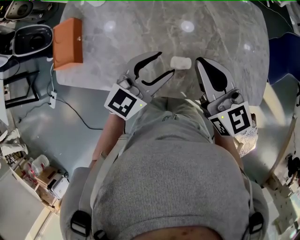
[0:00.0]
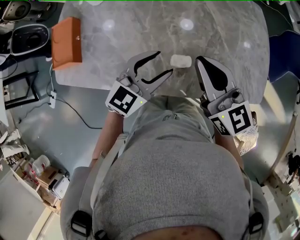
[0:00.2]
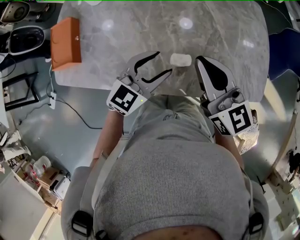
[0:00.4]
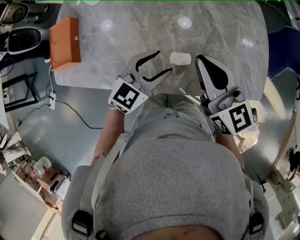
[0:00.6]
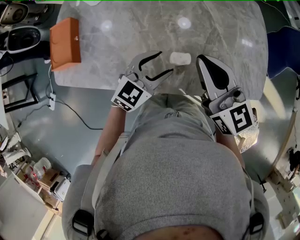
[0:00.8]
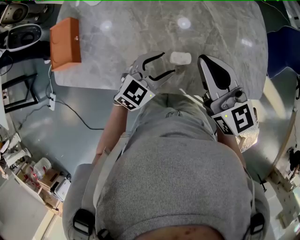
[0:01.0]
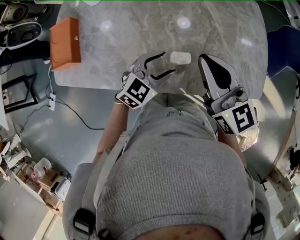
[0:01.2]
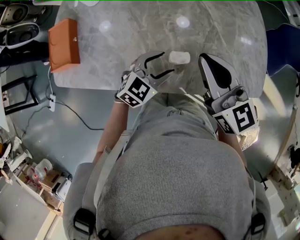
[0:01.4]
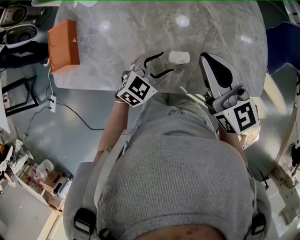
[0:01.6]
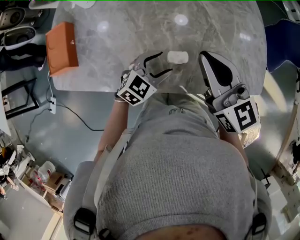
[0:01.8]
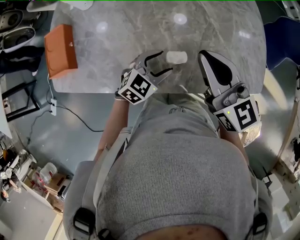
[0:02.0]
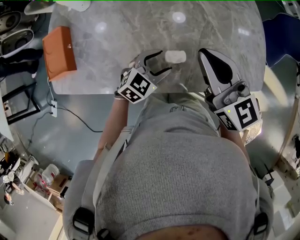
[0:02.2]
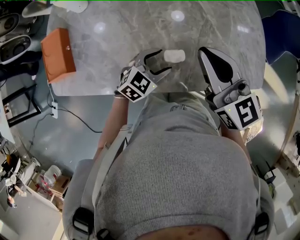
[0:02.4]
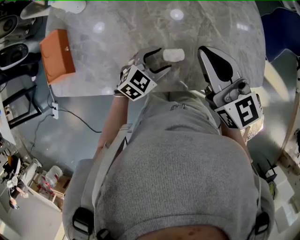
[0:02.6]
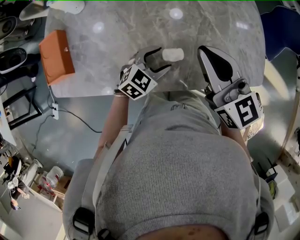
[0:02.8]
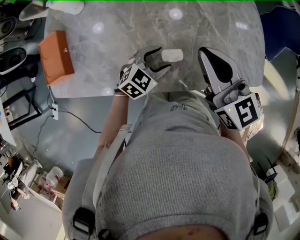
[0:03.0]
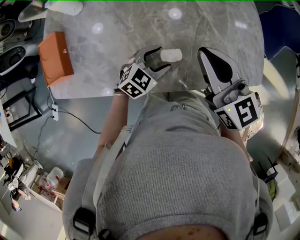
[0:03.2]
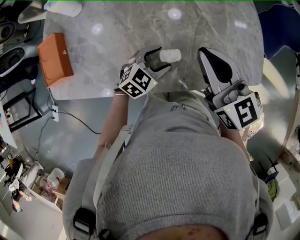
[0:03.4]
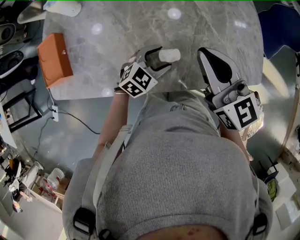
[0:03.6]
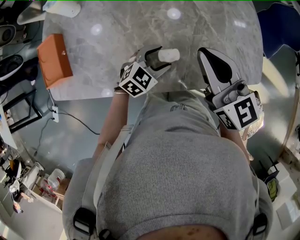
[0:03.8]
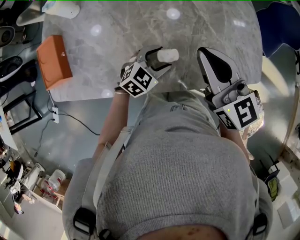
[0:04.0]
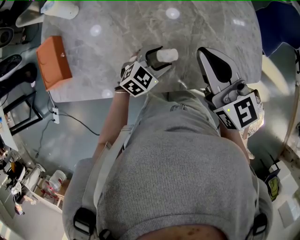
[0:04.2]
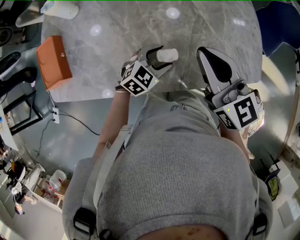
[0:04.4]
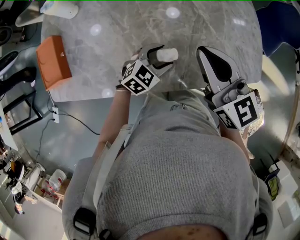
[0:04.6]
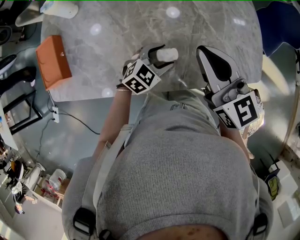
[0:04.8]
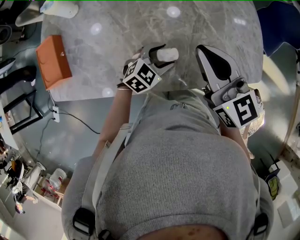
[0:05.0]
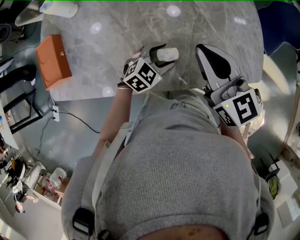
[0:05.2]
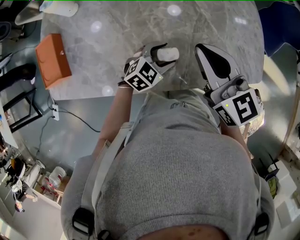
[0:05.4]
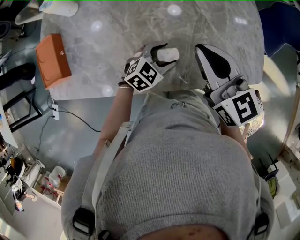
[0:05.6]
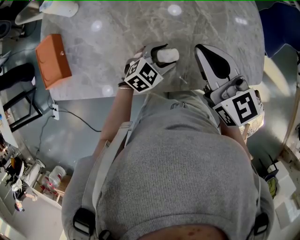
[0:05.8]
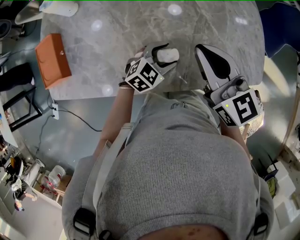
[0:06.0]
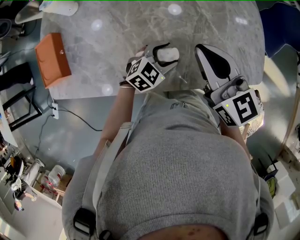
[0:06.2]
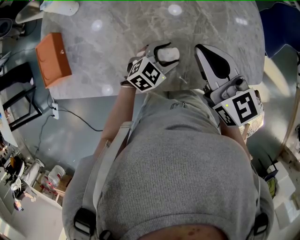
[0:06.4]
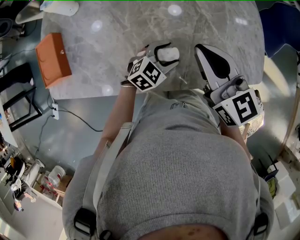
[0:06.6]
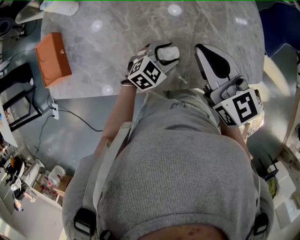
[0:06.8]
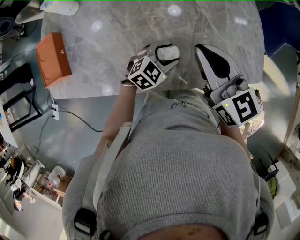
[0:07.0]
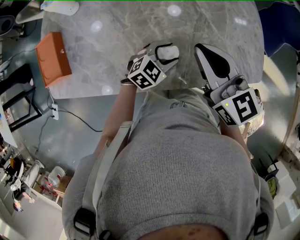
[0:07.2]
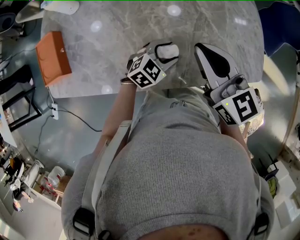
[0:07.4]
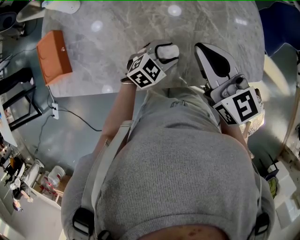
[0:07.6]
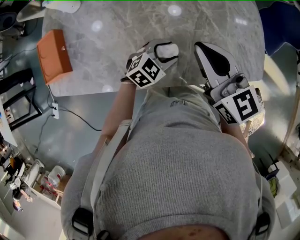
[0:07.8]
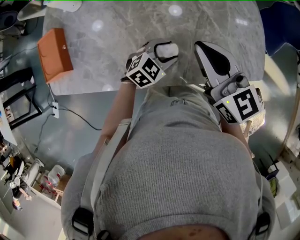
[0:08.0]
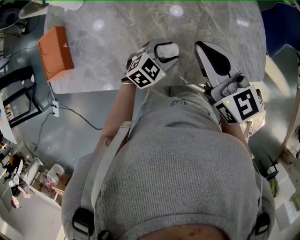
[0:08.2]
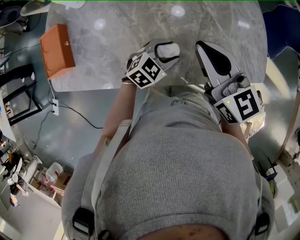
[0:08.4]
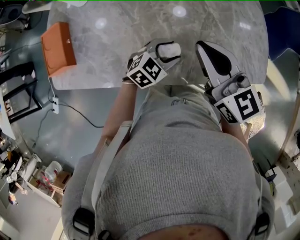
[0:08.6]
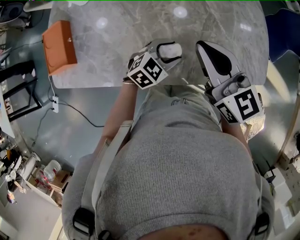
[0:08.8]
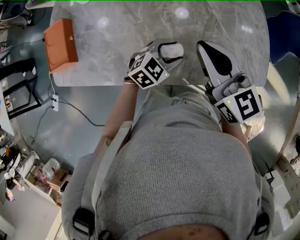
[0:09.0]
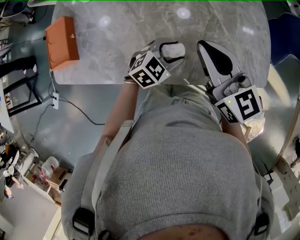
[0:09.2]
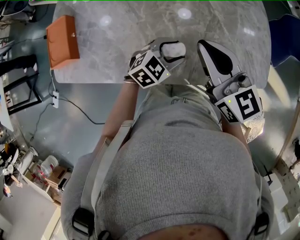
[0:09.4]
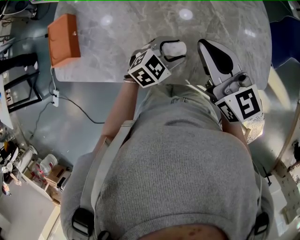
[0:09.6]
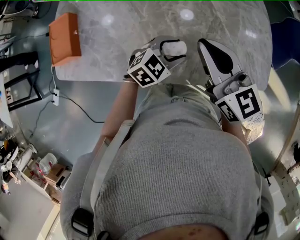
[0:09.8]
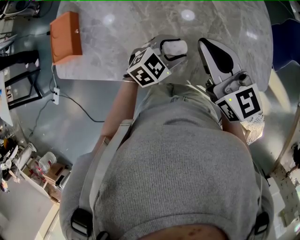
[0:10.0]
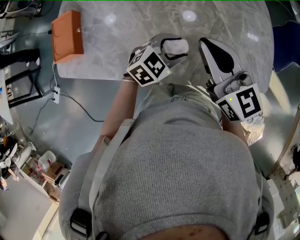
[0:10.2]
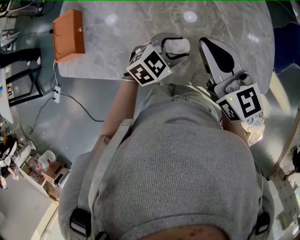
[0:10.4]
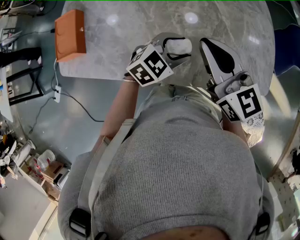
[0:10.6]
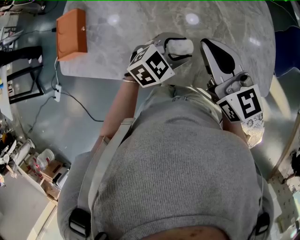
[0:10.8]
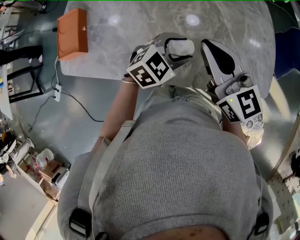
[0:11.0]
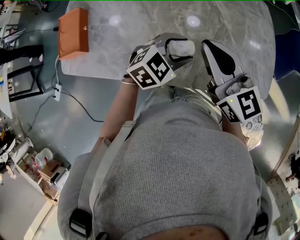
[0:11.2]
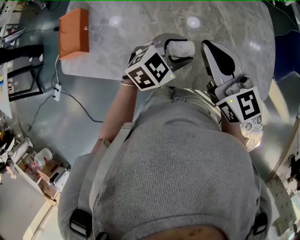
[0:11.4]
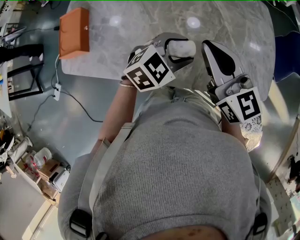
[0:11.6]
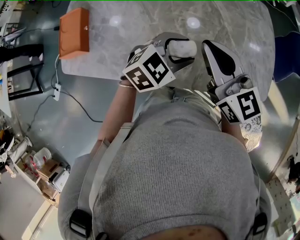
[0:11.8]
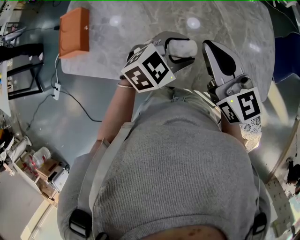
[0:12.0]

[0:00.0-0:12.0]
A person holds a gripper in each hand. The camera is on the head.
0:00.0 to 0:01.6: The left gripper travels downward by roughly 10 cm, and turns by some 20 degrees.
0:01.6 to 0:03.0: The grippers move only a little.
0:03.0 to 0:09.0: There are only small adjustments of the grippers.
0:09.0 to 0:10.4: There are only small adjustments of the grippers.
0:10.4 to 0:12.0: The left gripper is displaced upward by roughly 5 cm.

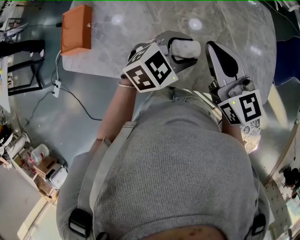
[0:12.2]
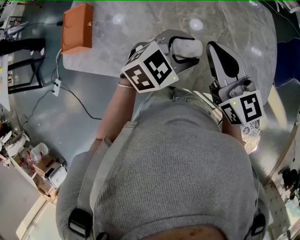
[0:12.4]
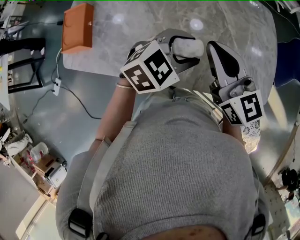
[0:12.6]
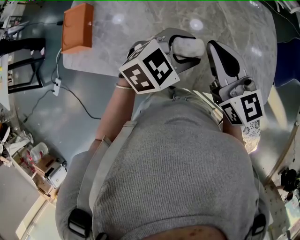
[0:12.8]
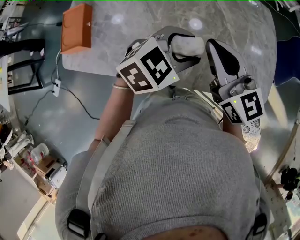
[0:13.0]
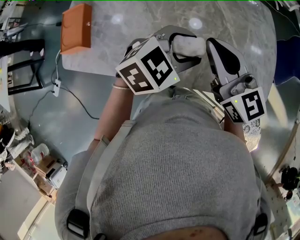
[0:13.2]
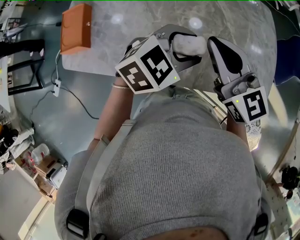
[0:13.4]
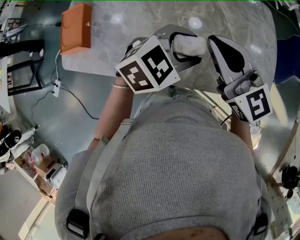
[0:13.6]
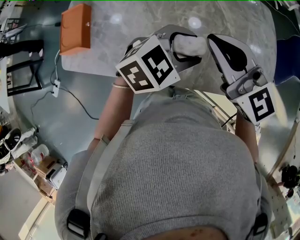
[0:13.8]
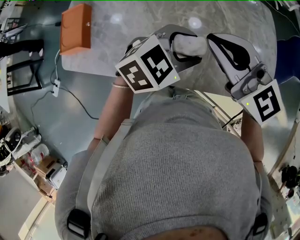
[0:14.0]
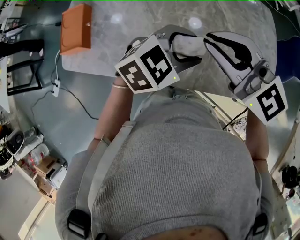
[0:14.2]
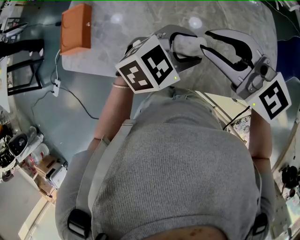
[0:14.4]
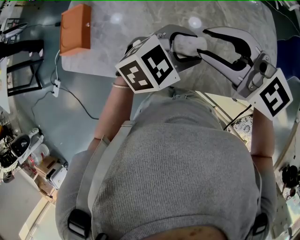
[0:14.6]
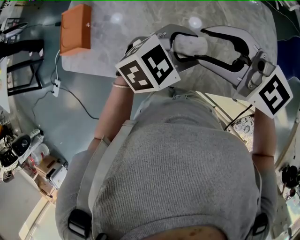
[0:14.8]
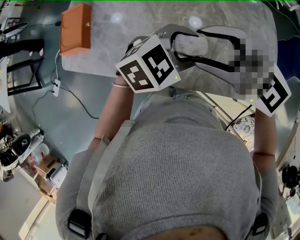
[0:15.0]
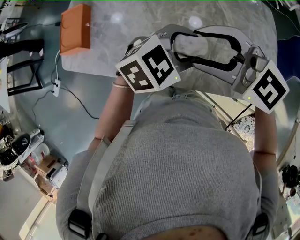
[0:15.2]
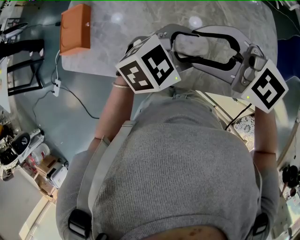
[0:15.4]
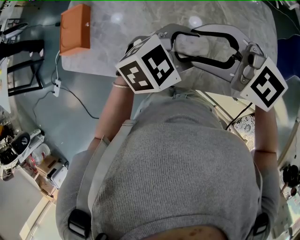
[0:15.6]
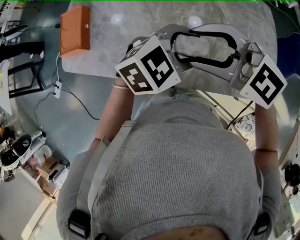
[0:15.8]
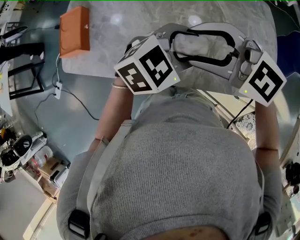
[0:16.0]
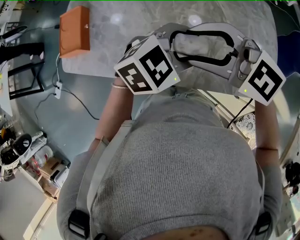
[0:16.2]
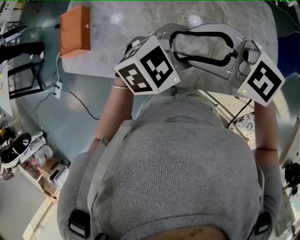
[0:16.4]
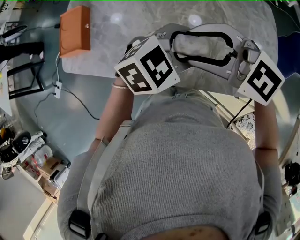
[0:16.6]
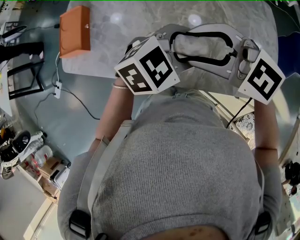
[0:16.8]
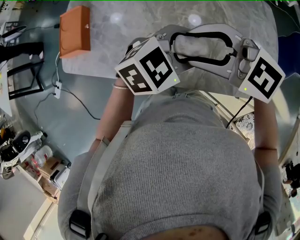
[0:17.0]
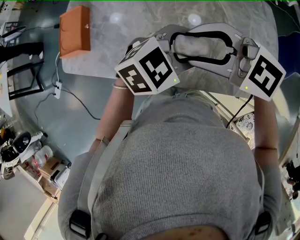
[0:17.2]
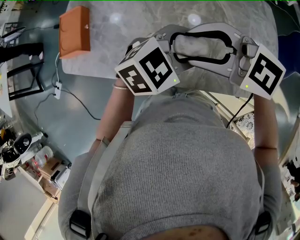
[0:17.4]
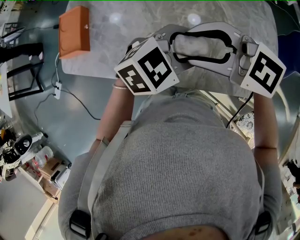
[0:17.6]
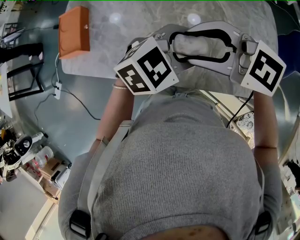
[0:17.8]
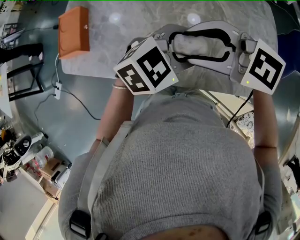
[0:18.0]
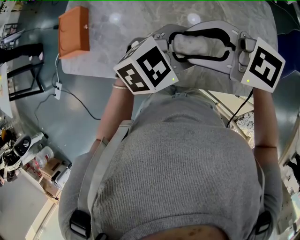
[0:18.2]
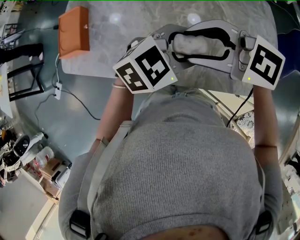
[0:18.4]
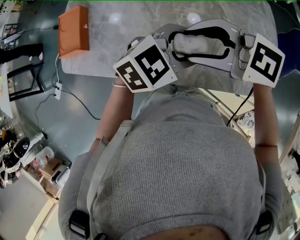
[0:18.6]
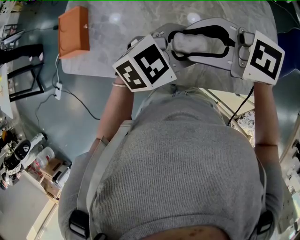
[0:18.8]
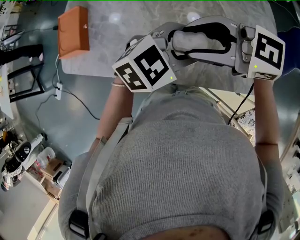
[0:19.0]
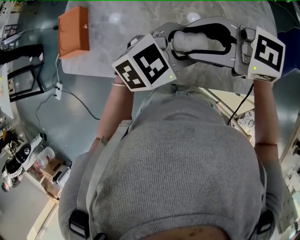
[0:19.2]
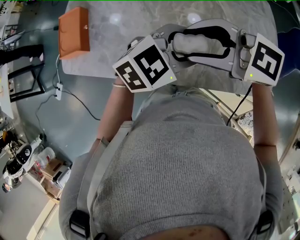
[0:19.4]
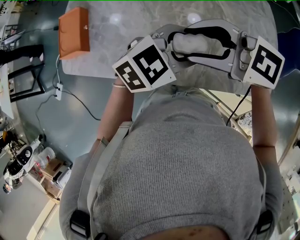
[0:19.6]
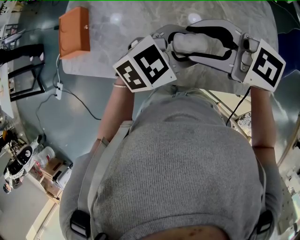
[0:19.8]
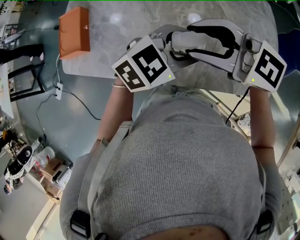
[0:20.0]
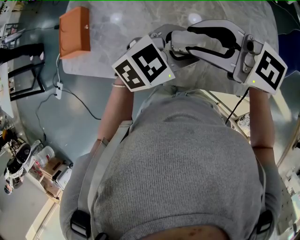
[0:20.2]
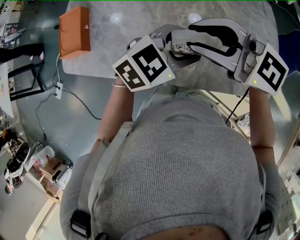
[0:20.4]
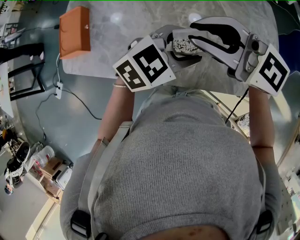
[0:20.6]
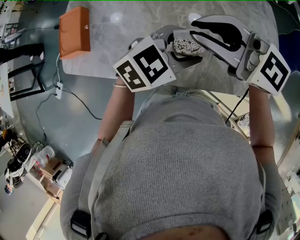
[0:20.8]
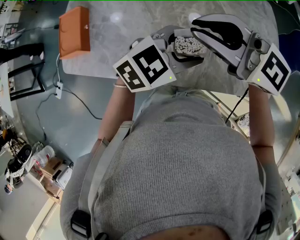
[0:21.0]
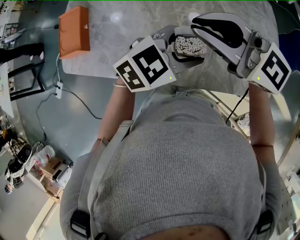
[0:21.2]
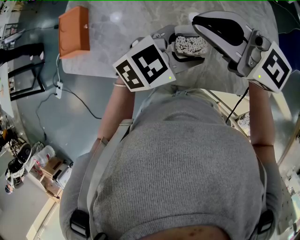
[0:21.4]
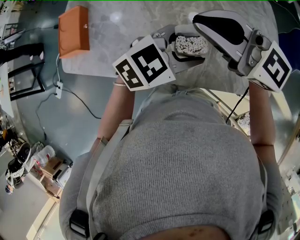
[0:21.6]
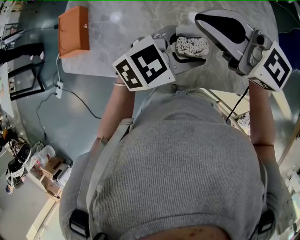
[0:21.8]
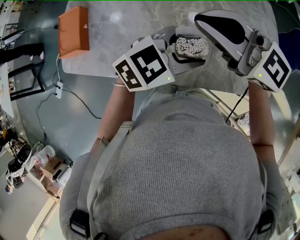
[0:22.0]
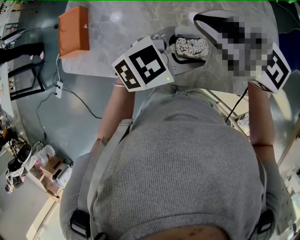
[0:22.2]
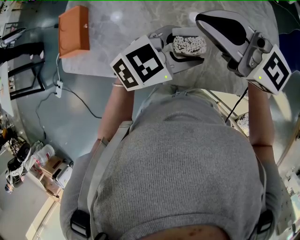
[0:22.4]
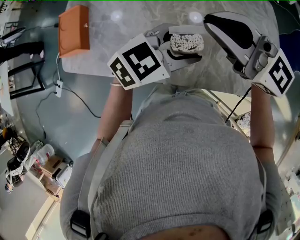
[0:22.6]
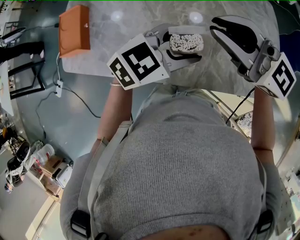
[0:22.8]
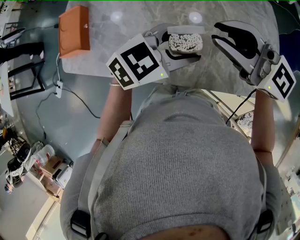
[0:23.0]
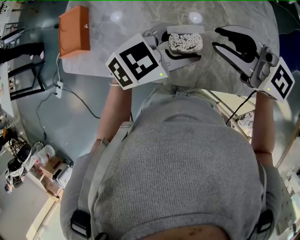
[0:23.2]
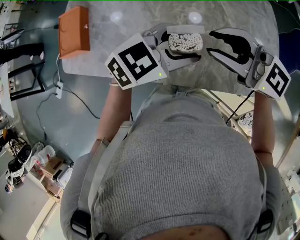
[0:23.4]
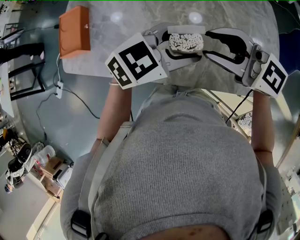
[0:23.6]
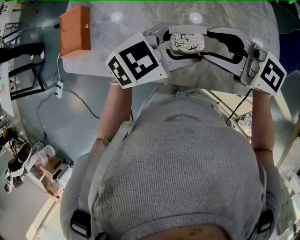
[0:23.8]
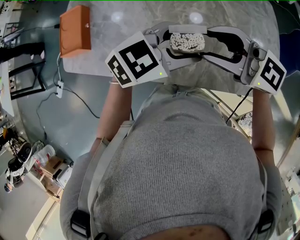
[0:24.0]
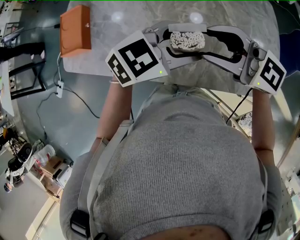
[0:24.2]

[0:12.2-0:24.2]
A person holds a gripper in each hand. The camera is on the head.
0:12.2 to 0:13.8: The grippers make only small movements.
0:13.8 to 0:15.2: The right gripper turns by some 40 degrees, and opens its fingers.
0:15.2 to 0:18.2: The grippers make only small movements.
0:18.2 to 0:19.8: The grippers make only small movements.
0:19.8 to 0:21.2: The right gripper closes its fingers.
0:21.2 to 0:22.6: The grippers move only a little.
0:22.6 to 0:24.2: The right gripper heads downward, covering some 5 cm, and opens its fingers.

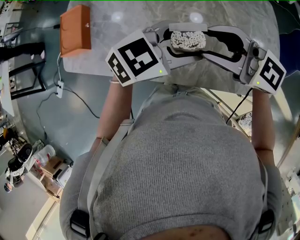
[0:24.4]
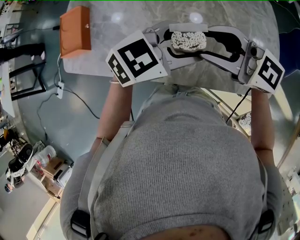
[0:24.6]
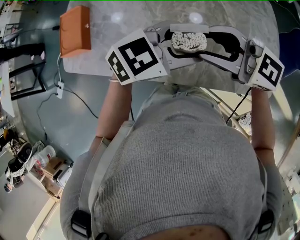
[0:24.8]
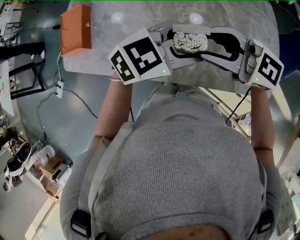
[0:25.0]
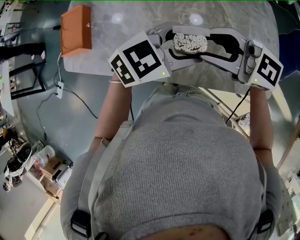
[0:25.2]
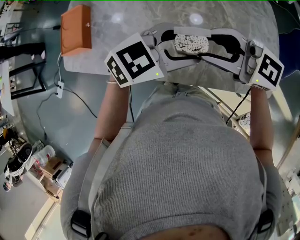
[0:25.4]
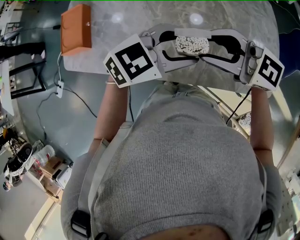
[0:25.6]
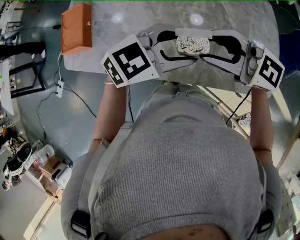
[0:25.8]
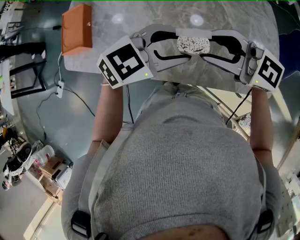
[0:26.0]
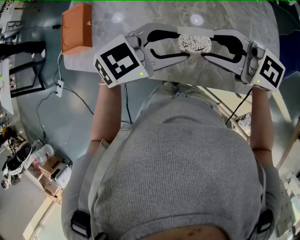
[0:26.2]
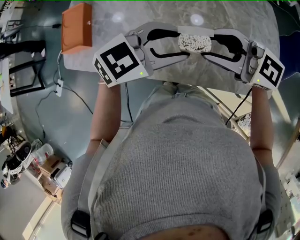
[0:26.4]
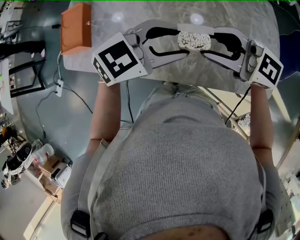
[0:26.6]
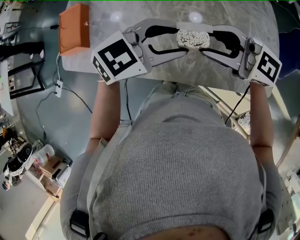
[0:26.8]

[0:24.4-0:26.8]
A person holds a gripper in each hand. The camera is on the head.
0:24.4 to 0:26.8: There are only small adjustments of the grippers.
